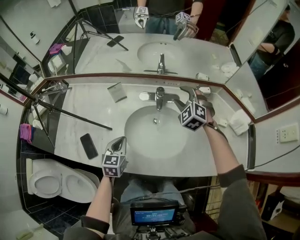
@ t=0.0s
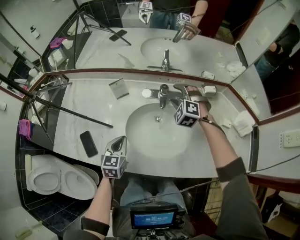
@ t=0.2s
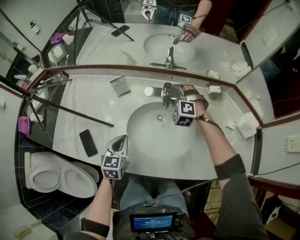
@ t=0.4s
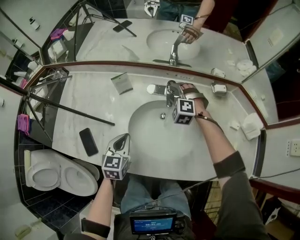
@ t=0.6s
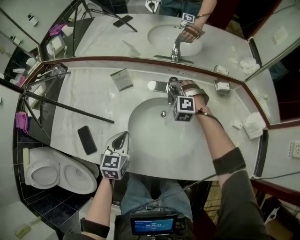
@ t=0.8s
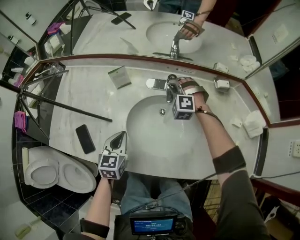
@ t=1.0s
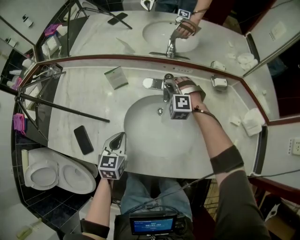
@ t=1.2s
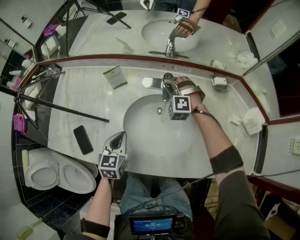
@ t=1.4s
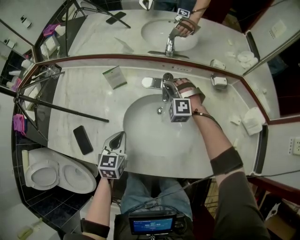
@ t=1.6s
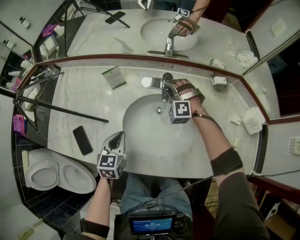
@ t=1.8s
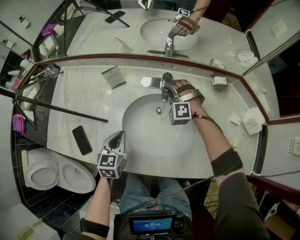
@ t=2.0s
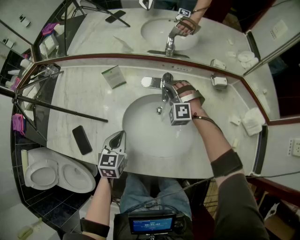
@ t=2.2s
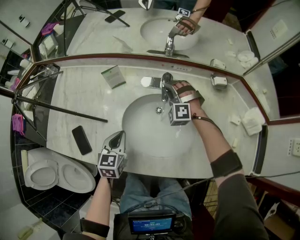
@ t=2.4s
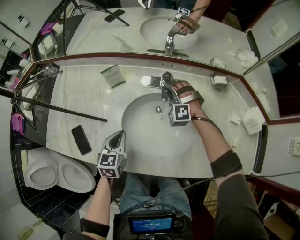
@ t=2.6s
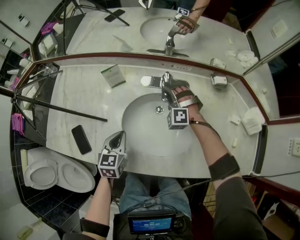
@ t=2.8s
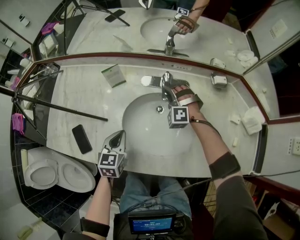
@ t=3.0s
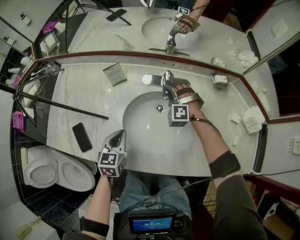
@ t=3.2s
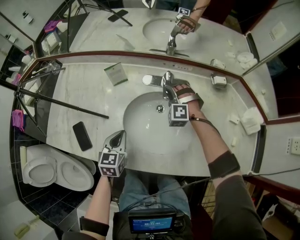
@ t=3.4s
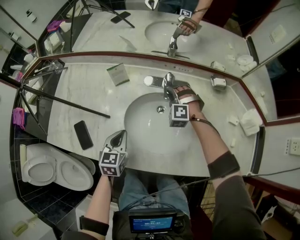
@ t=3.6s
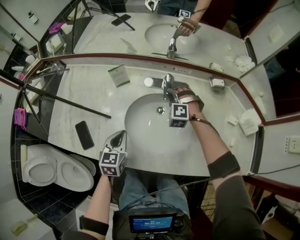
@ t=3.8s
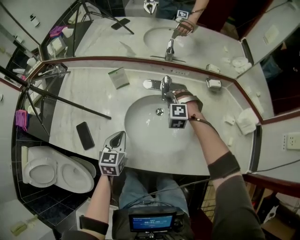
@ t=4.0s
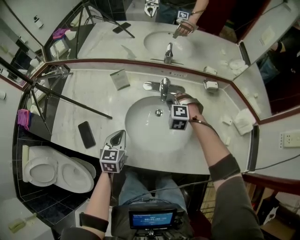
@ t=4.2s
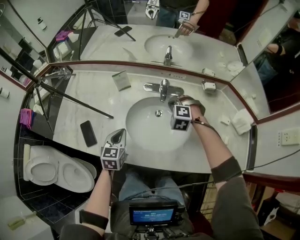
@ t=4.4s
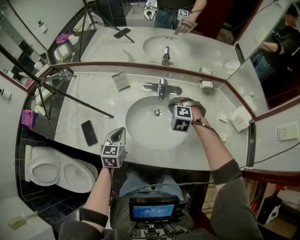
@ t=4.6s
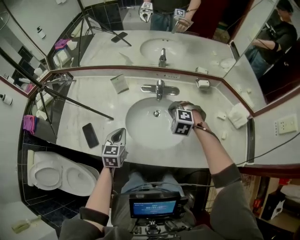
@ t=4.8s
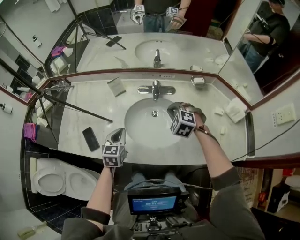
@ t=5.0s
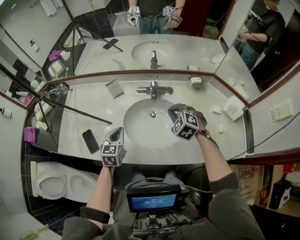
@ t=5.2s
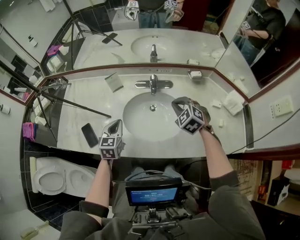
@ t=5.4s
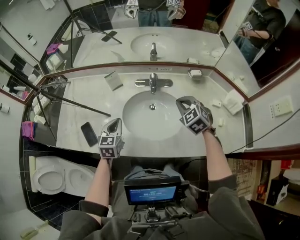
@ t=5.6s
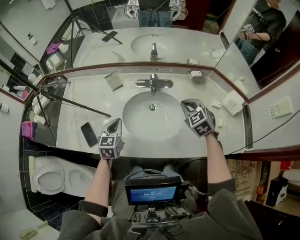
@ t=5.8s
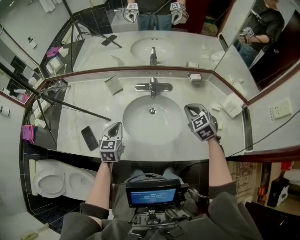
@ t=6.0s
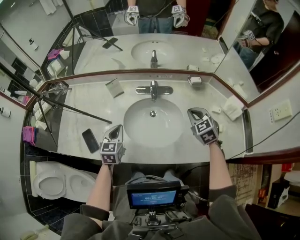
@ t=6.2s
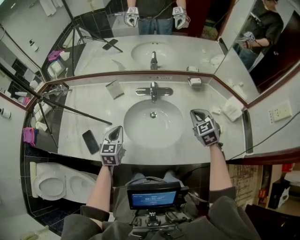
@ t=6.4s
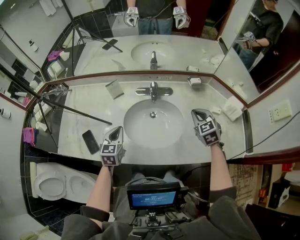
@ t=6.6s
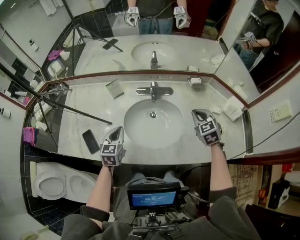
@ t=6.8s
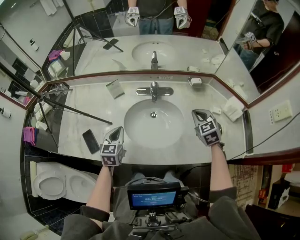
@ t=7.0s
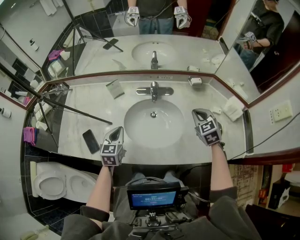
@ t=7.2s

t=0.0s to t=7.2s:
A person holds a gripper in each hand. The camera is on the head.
t=0.0s to t=1.4s: The left gripper is displaced downward by about 5 cm. The right gripper heads downward, to the left and forward, covering approximately 20 cm, rotates approximately 30 degrees, and closes its fingers.
t=1.4s to t=2.8s: The grippers make only small movements.
t=2.8s to t=4.4s: The right gripper moves backward and upward, some 10 cm, and swivels about 20 degrees. Meanwhile the left gripper heads upward, covering roughly 5 cm.
t=4.4s to t=5.8s: The right gripper goes some 15 cm upward, to the right and backward, and twists approximately 40 degrees clockwise, seen from behind.
t=5.8s to t=7.2s: The right gripper is displaced to the right by approximately 5 cm.

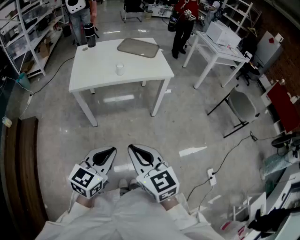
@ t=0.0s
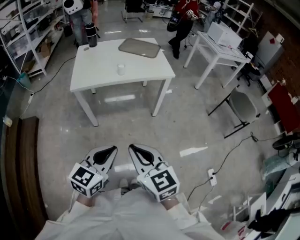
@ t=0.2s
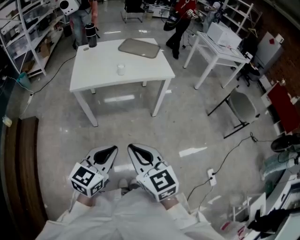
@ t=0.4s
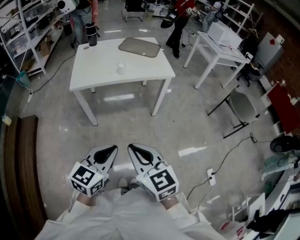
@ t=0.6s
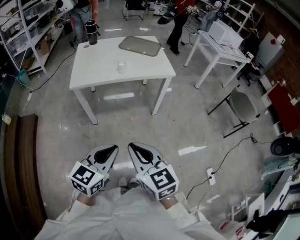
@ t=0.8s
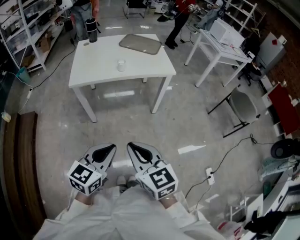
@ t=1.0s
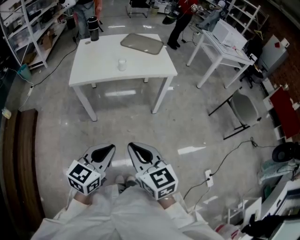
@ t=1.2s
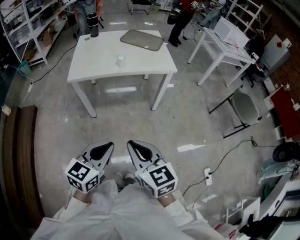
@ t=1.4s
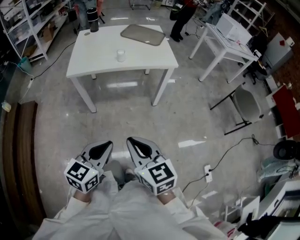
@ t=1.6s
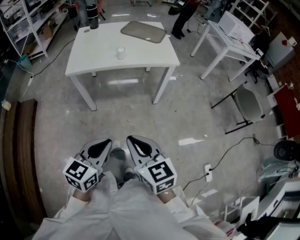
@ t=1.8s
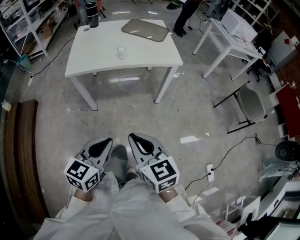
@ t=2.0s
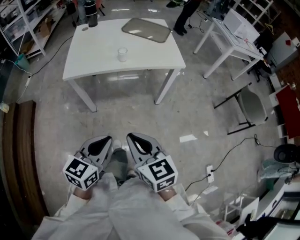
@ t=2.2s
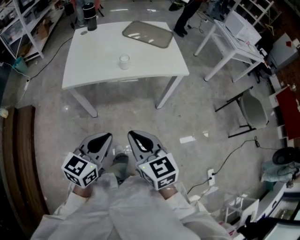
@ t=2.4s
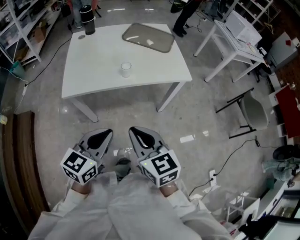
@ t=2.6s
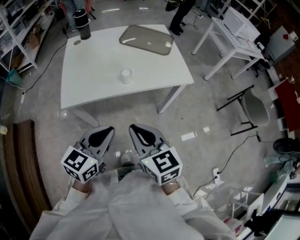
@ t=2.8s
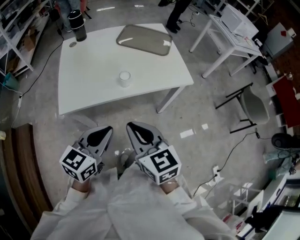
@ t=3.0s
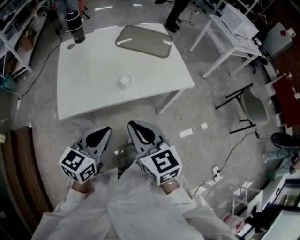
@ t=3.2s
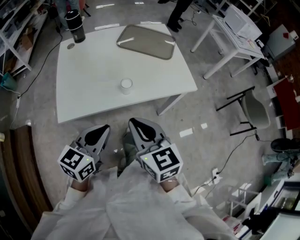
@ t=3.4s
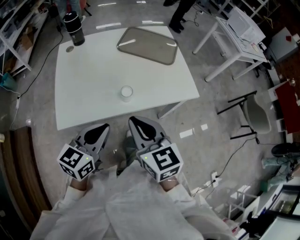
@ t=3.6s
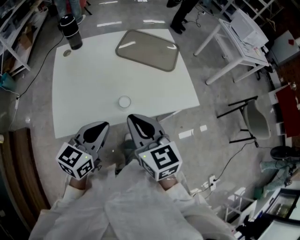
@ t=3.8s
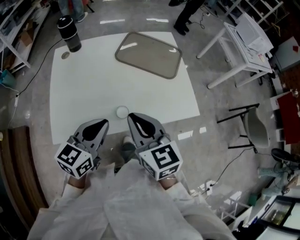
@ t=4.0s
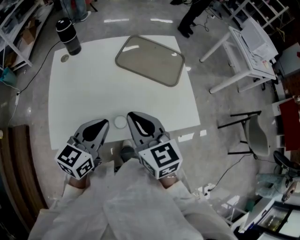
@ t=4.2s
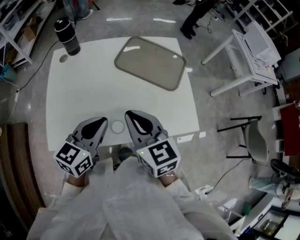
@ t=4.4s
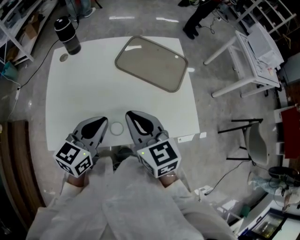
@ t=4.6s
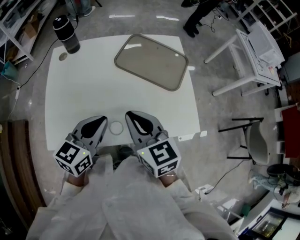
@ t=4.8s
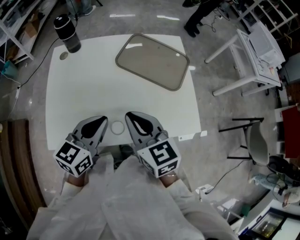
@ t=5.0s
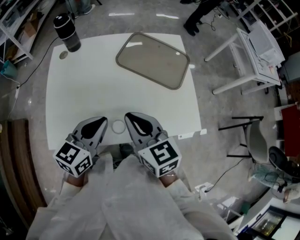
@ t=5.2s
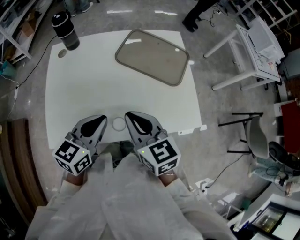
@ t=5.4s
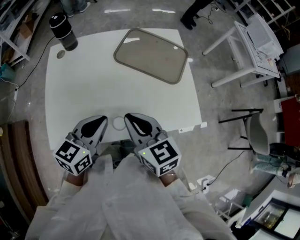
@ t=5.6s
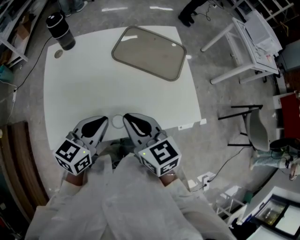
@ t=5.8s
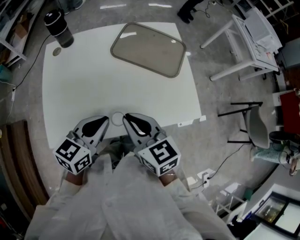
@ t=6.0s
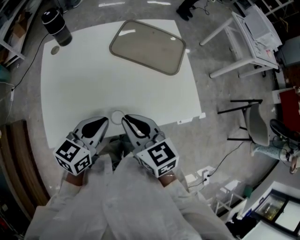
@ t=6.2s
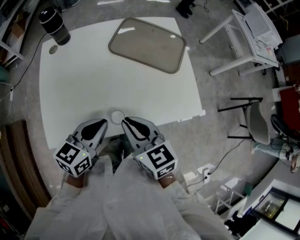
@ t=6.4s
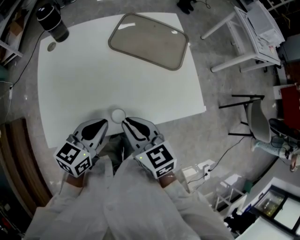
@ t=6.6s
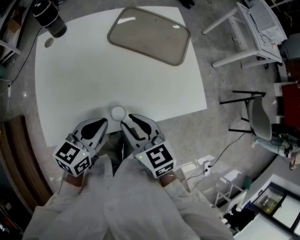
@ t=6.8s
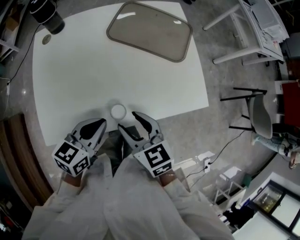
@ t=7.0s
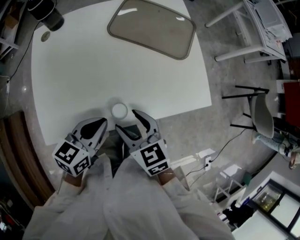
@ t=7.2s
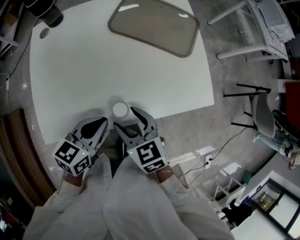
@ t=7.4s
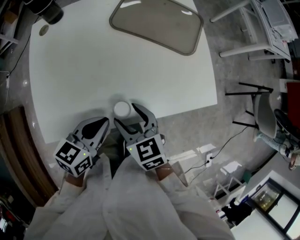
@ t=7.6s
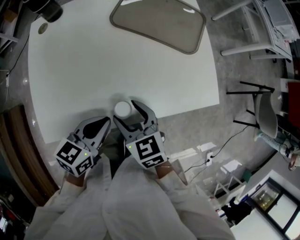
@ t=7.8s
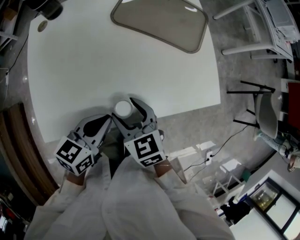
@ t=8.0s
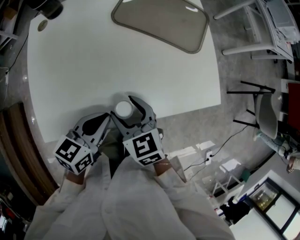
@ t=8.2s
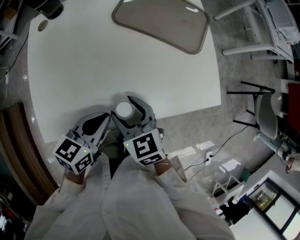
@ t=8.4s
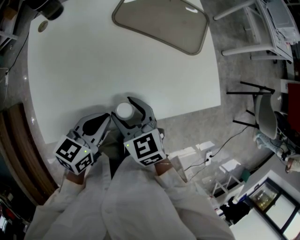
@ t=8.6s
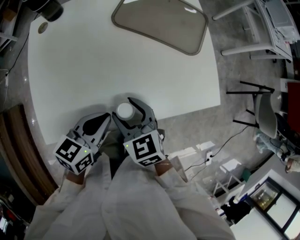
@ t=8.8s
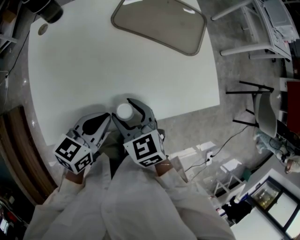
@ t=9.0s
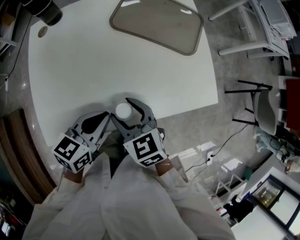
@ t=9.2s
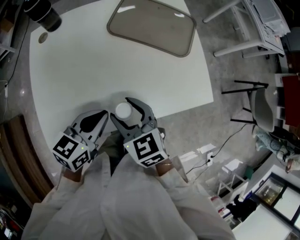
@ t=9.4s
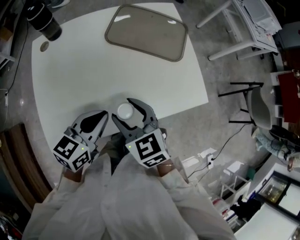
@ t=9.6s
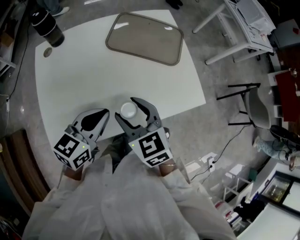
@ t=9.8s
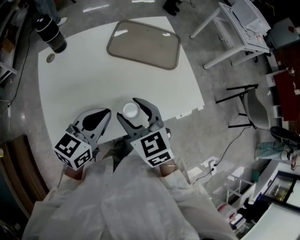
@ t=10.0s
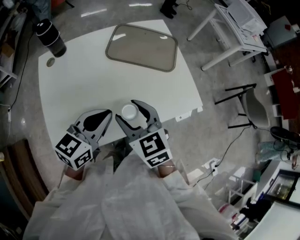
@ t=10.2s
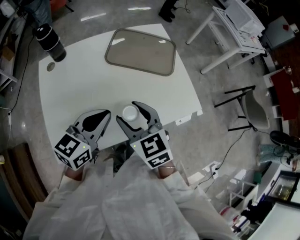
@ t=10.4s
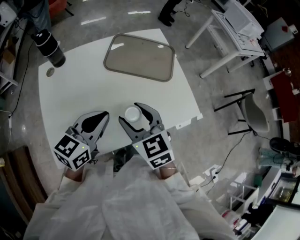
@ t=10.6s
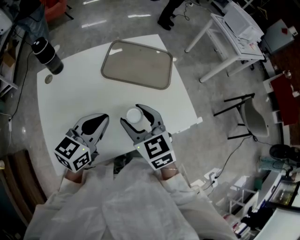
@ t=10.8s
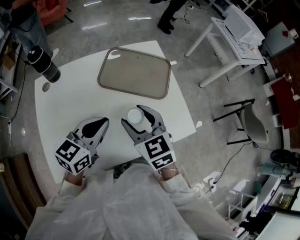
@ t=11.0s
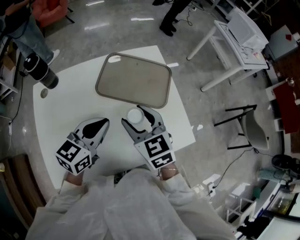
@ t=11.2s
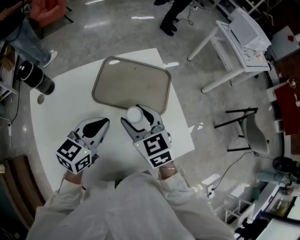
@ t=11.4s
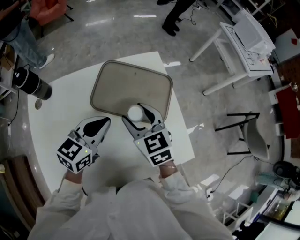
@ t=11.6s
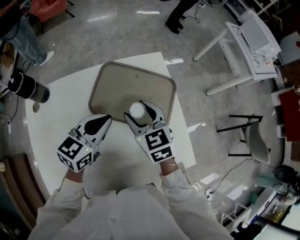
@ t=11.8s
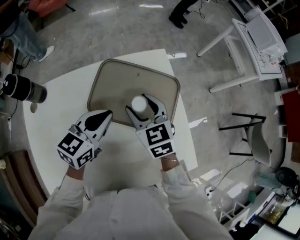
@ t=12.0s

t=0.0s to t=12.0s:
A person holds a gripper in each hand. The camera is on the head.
t=0.0s to t=1.6s: The right gripper ends up some 5 cm from where it was.
t=1.6s to t=3.0s: The two grippers go roughly 35 cm forward.
t=3.0s to t=4.4s: The two grippers go approximately 30 cm forward.
t=4.4s to t=6.0s: The right gripper changes place by approximately 5 cm.
t=6.0s to t=7.6s: Both grippers travel together downward, about 10 cm. The right gripper opens its fingers.
t=7.6s to t=9.0s: There are only small adjustments of the grippers.
t=9.0s to t=10.4s: Both grippers travel together upward, about 15 cm. The left gripper swivels roughly 20 degrees.
t=10.4s to t=12.0s: Both grippers move forward, some 30 cm.

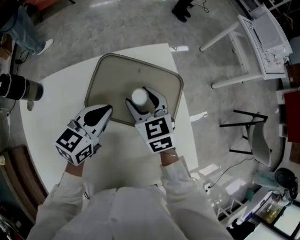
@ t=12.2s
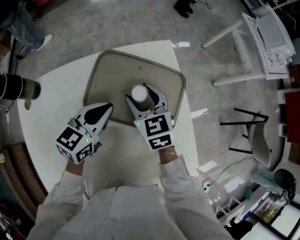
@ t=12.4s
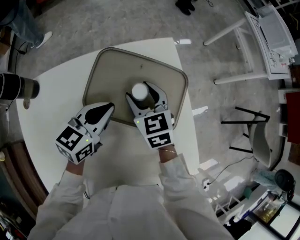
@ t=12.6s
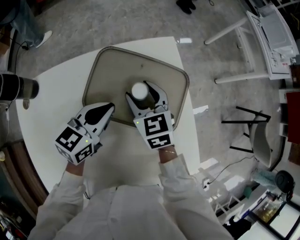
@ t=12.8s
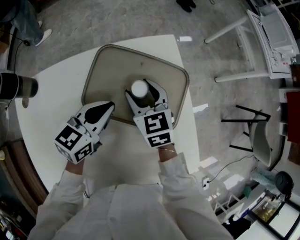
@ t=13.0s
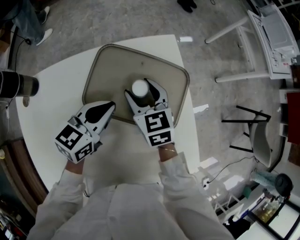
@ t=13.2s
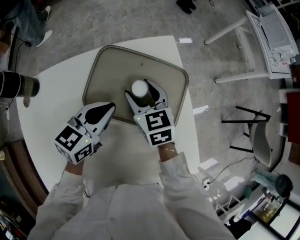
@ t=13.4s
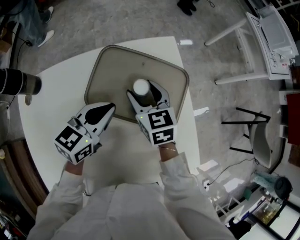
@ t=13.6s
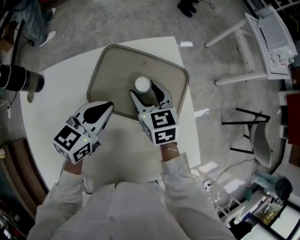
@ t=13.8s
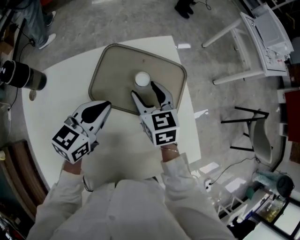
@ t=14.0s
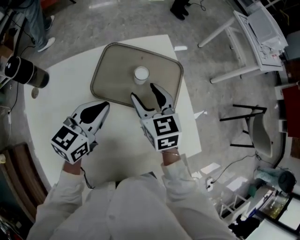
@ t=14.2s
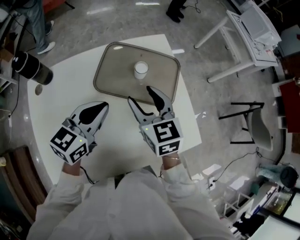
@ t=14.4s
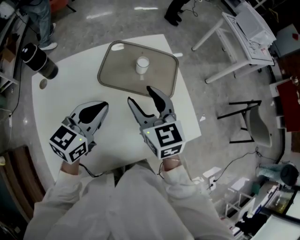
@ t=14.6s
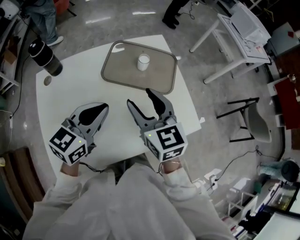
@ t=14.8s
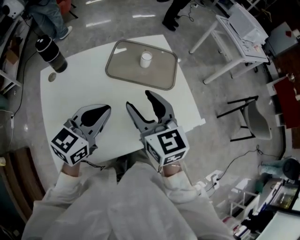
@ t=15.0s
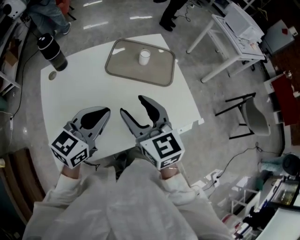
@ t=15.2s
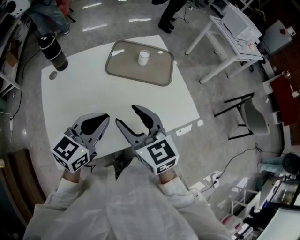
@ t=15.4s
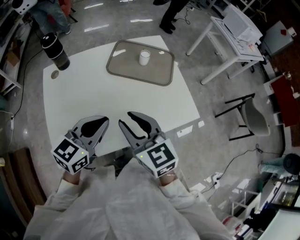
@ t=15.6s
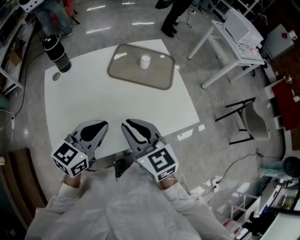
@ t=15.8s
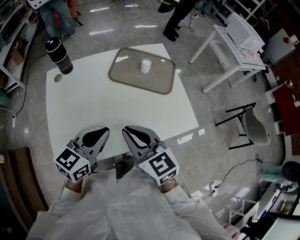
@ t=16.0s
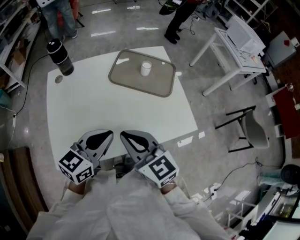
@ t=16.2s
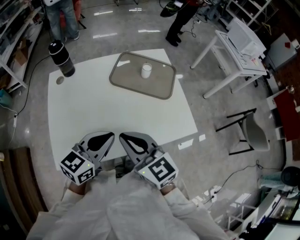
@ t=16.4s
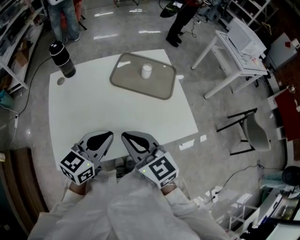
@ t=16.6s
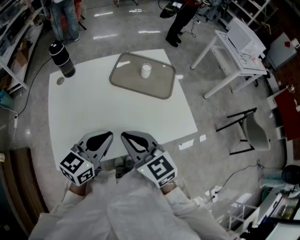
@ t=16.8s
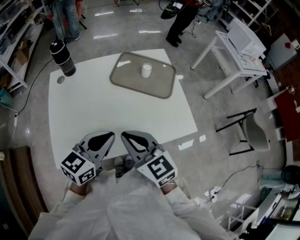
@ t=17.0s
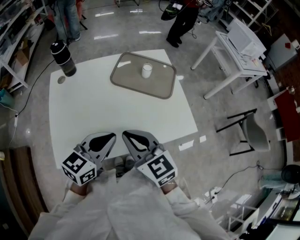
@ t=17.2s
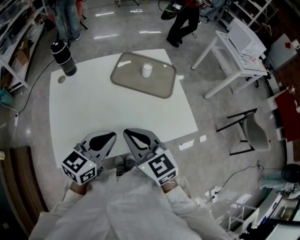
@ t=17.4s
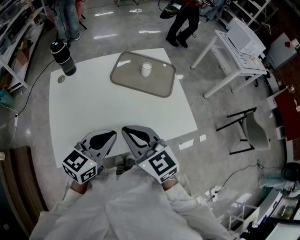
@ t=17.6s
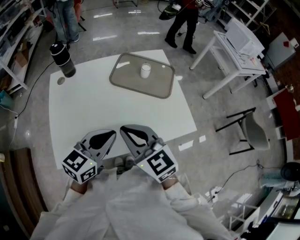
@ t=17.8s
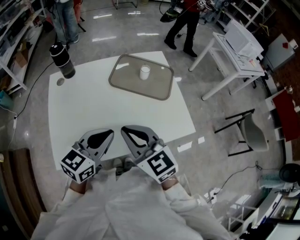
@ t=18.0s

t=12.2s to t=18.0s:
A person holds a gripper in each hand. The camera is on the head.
t=12.2s to t=13.6s: There are only small adjustments of the grippers.
t=13.6s to t=15.0s: Both grippers move backward and upward, some 30 cm.
t=15.0s to t=16.6s: Both grippers move backward, roughly 10 cm. The right gripper closes.
t=16.6s to t=18.0s: The grippers make only small movements.
